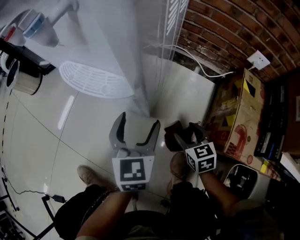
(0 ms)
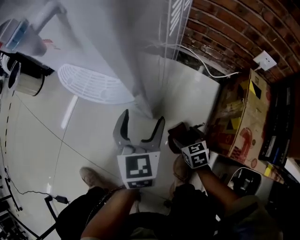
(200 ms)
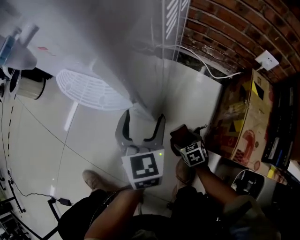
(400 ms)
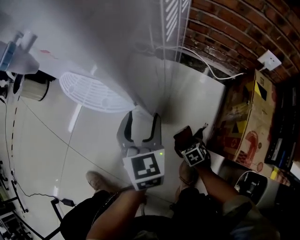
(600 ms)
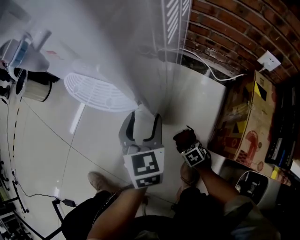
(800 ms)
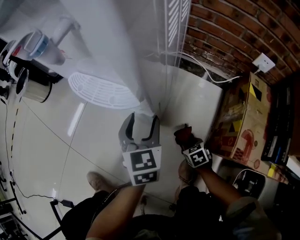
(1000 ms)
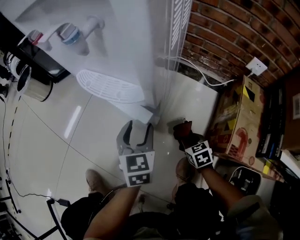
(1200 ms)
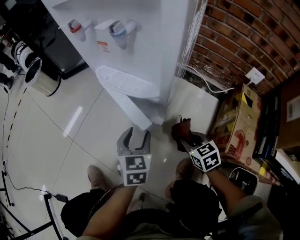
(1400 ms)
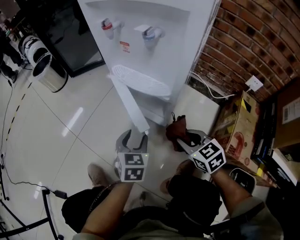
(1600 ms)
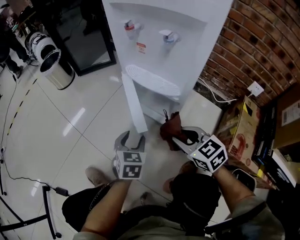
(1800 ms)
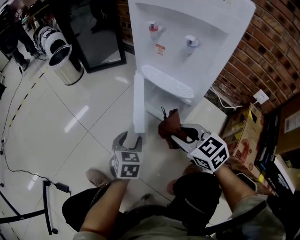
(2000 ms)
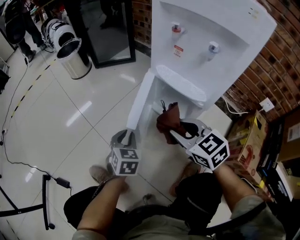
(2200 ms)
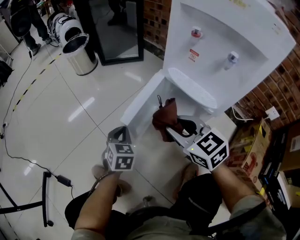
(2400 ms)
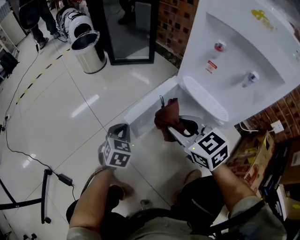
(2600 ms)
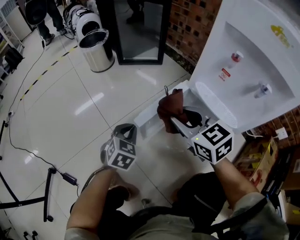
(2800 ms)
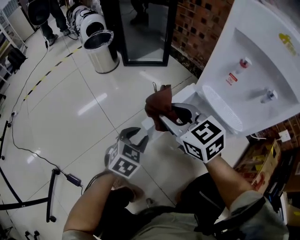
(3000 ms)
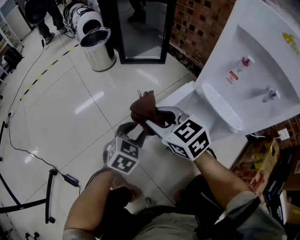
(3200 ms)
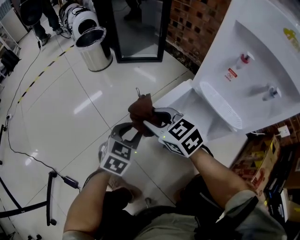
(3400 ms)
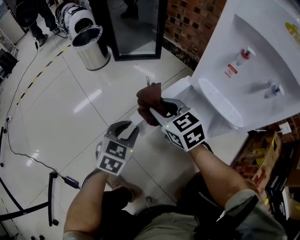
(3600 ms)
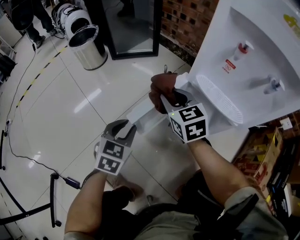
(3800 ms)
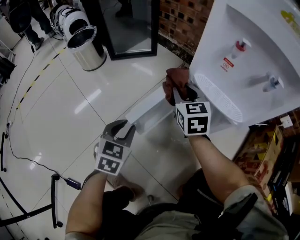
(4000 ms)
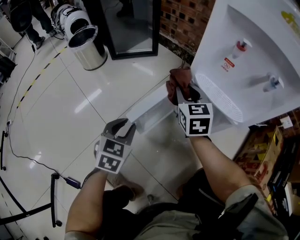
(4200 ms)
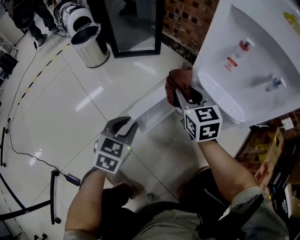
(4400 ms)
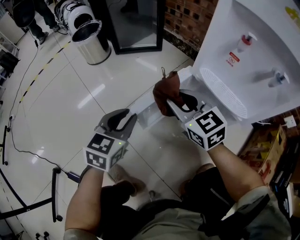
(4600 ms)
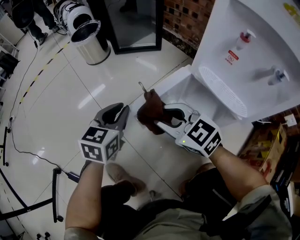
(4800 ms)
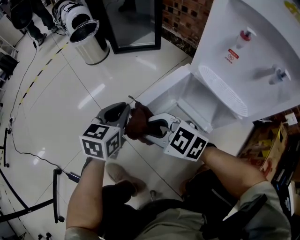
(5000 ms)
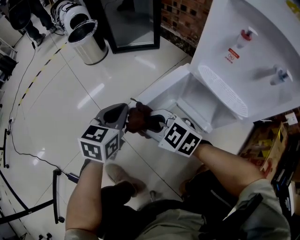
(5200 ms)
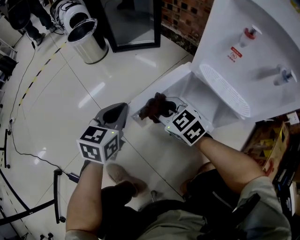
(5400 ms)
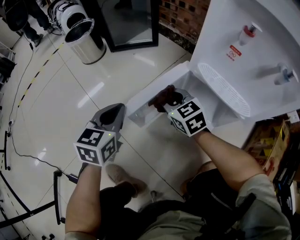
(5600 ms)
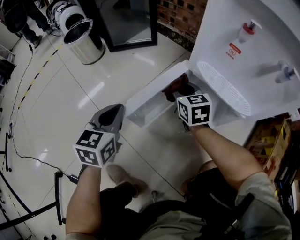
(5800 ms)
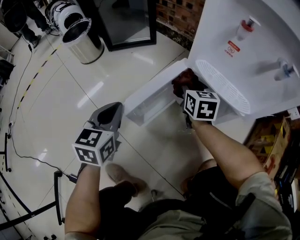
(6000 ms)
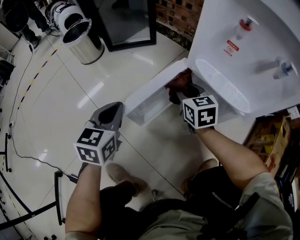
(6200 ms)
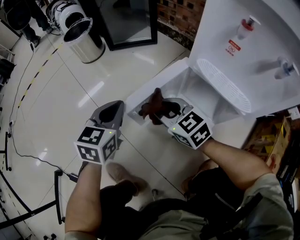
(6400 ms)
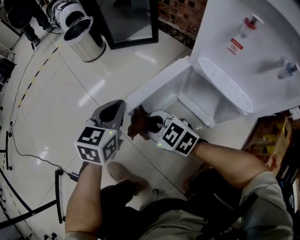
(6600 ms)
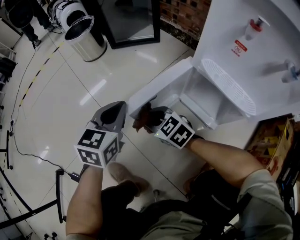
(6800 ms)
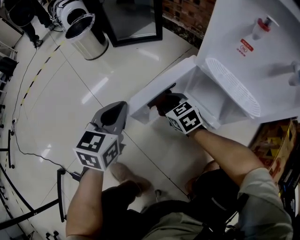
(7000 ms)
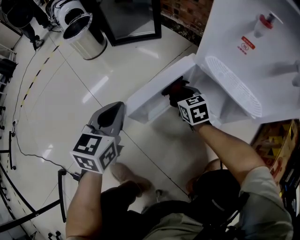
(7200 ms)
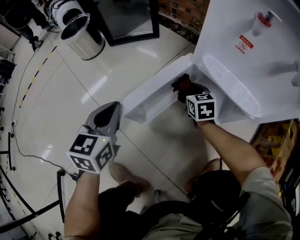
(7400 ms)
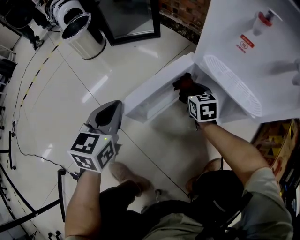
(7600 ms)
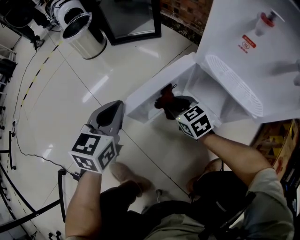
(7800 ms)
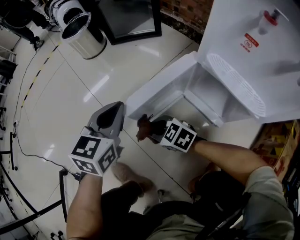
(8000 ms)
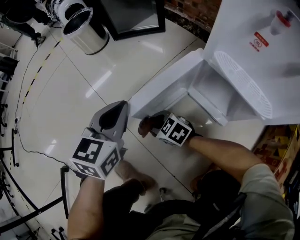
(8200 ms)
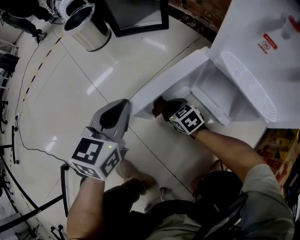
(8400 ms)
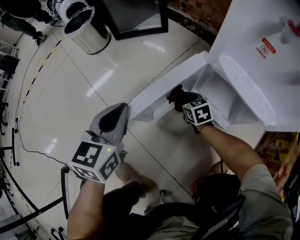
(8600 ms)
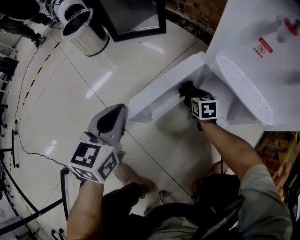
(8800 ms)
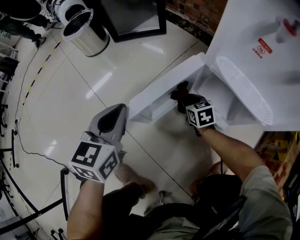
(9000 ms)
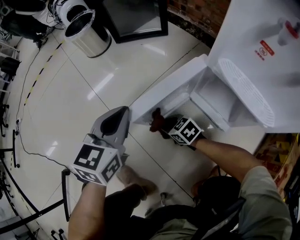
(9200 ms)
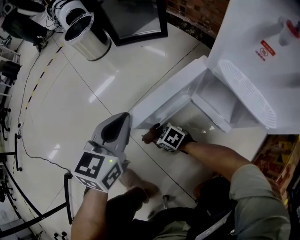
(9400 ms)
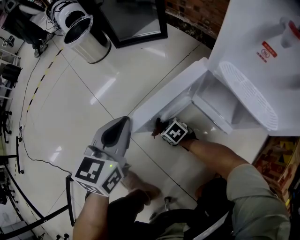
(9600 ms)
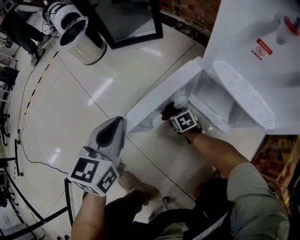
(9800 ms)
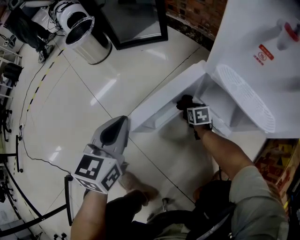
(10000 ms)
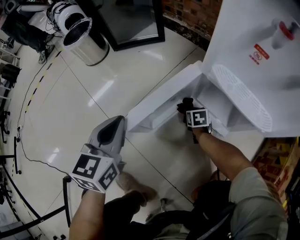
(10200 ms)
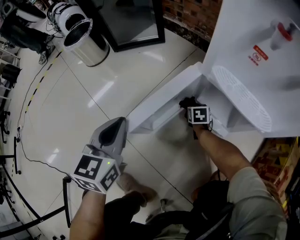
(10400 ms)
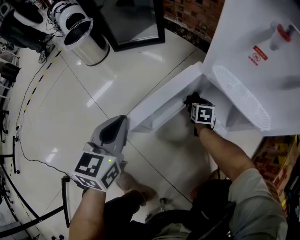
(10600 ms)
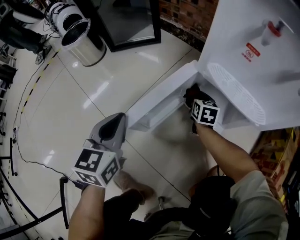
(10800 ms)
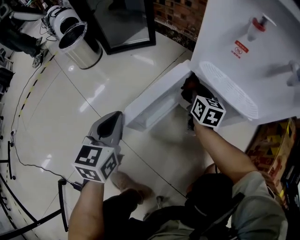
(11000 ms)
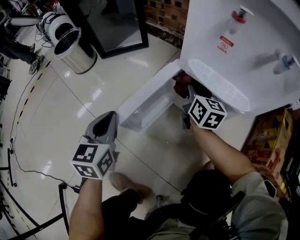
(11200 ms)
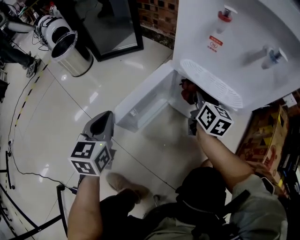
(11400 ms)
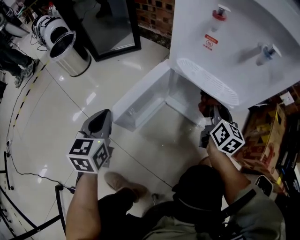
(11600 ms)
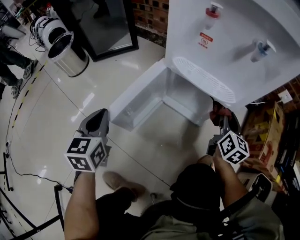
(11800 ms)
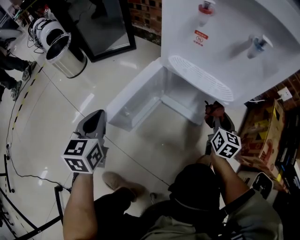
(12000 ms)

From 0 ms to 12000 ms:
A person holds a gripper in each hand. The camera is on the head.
From 0 ms to 1600 ms: The right gripper travels upward and to the left by roughly 15 cm, rotates some 20 degrees, and closes up, while the left gripper shifts approximately 10 cm to the left, and closes.
From 1600 ms to 3000 ms: The right gripper shifts about 40 cm to the left, forward and upward, and swivels roughly 30 degrees. Meanwhile the left gripper goes roughly 25 cm to the left and forward.
From 3000 ms to 4400 ms: The right gripper goes approximately 15 cm to the right, forward and downward, and swivels approximately 30 degrees.
From 4400 ms to 6000 ms: The left gripper shifts by some 5 cm. The right gripper heads downward, covering about 10 cm, and rotates approximately 20 degrees.
From 6000 ms to 7600 ms: The right gripper heads downward, covering some 10 cm.
From 7600 ms to 9000 ms: The right gripper travels downward by some 10 cm.
From 9000 ms to 10400 ms: The right gripper is displaced downward by some 10 cm, and turns by approximately 20 degrees.
From 10400 ms to 12000 ms: The right gripper heads to the right, upward and backward, covering about 35 cm, and tilts its fingers about 30 degrees upward.

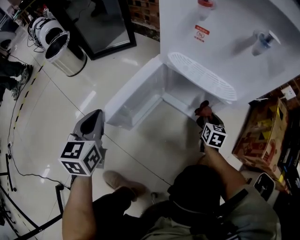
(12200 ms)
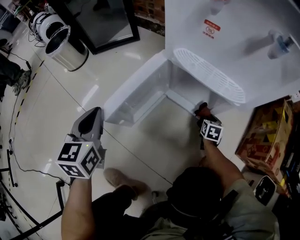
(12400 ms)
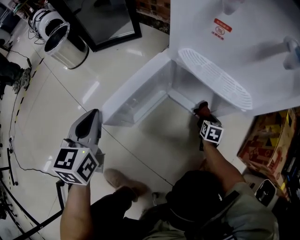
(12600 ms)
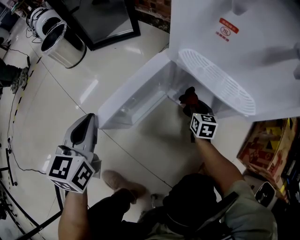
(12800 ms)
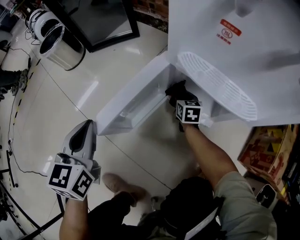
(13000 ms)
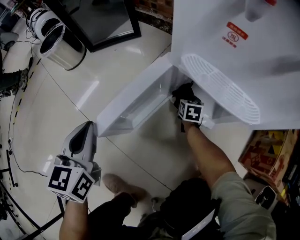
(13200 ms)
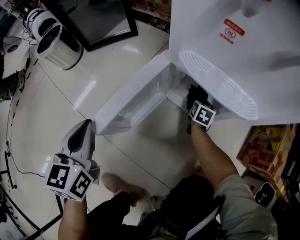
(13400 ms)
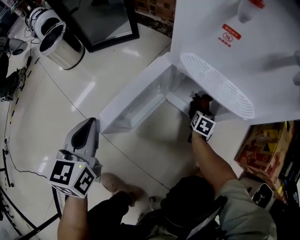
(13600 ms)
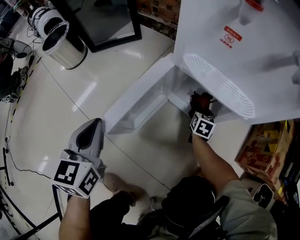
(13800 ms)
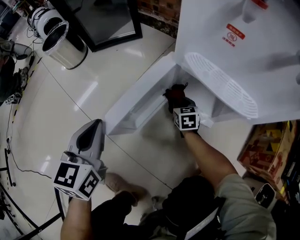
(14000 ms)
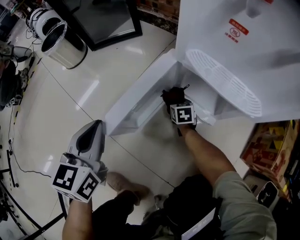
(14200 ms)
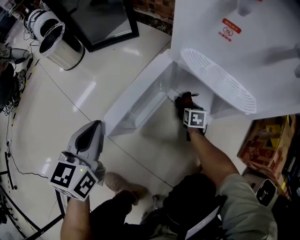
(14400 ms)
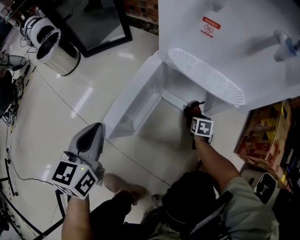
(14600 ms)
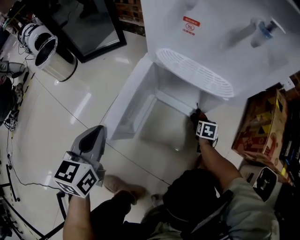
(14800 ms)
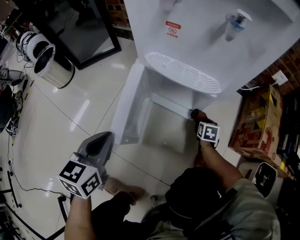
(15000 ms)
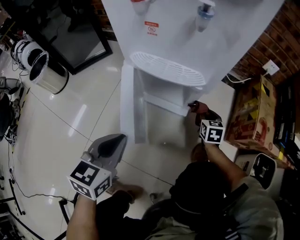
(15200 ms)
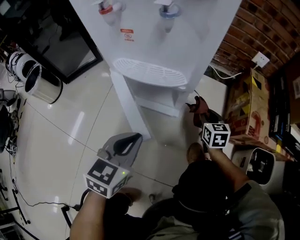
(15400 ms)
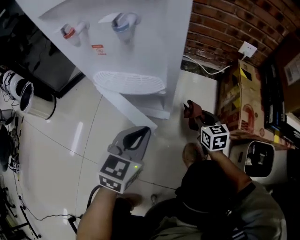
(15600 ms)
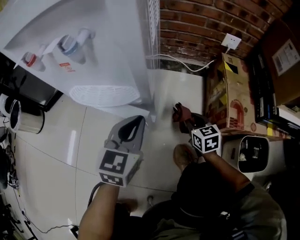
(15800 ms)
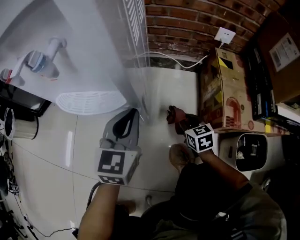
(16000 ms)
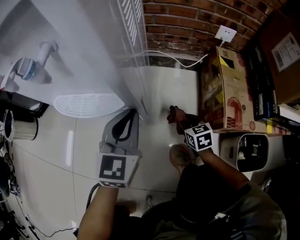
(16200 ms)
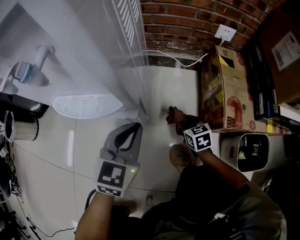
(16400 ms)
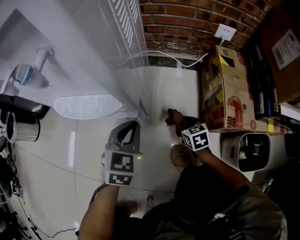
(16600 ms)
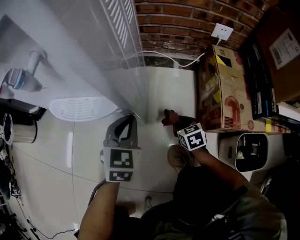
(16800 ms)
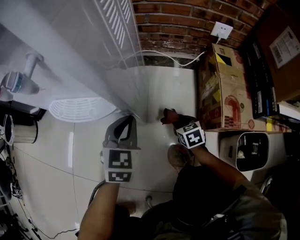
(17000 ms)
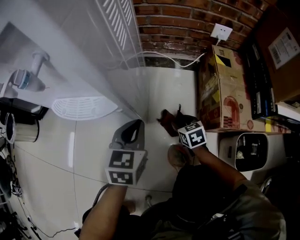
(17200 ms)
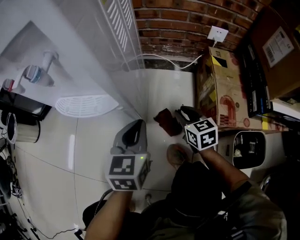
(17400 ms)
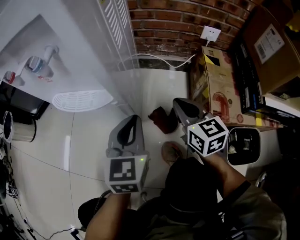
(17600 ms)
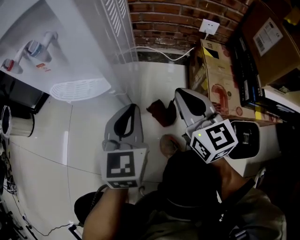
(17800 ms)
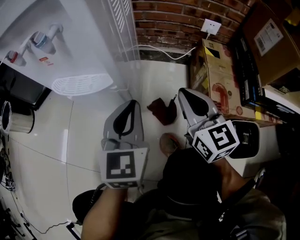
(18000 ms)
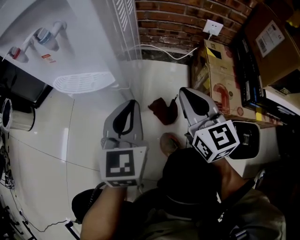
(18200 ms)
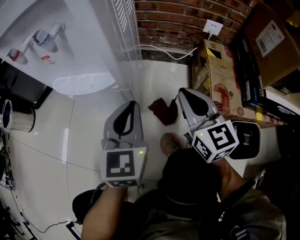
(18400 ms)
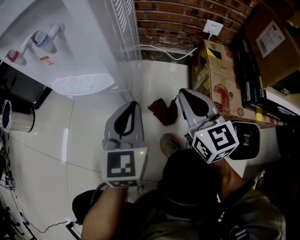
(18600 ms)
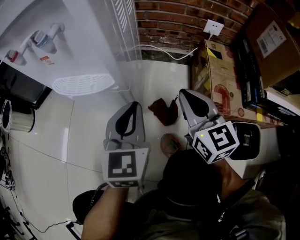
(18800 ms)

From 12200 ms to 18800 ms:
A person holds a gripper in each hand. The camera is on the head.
From 12200 ms to 13800 ms: The right gripper is displaced to the left, forward and downward by roughly 10 cm.
From 13800 ms to 15400 ms: The left gripper moves approximately 25 cm, and turns by some 40 degrees. Meanwhile the right gripper ends up approximately 25 cm from where it was.
From 15400 ms to 17200 ms: The left gripper shifts some 20 cm to the right and forward, while the right gripper travels downward and to the right by roughly 10 cm.
From 17200 ms to 18800 ms: The right gripper is displaced upward by roughly 30 cm, tips its fingers upward by some 40 degrees, and closes up; the left gripper goes some 10 cm upward.

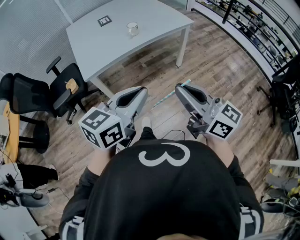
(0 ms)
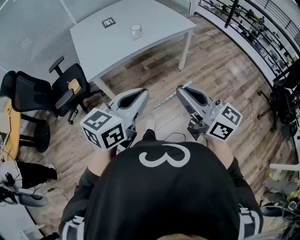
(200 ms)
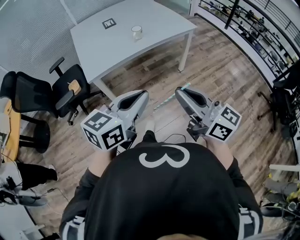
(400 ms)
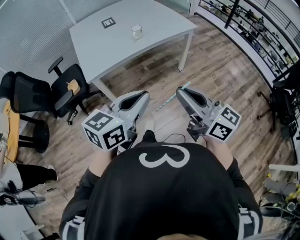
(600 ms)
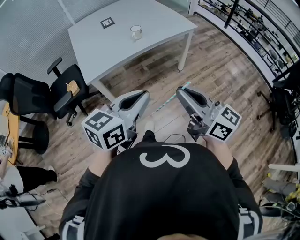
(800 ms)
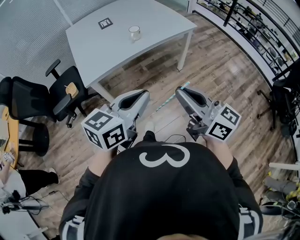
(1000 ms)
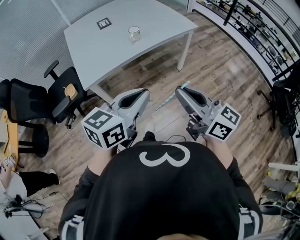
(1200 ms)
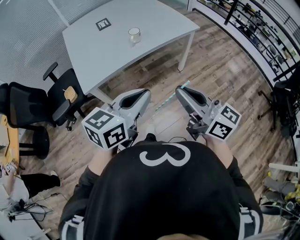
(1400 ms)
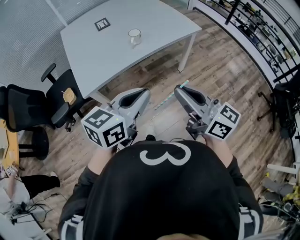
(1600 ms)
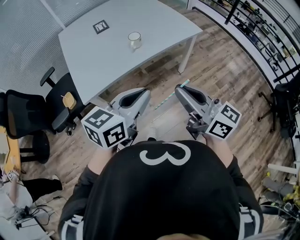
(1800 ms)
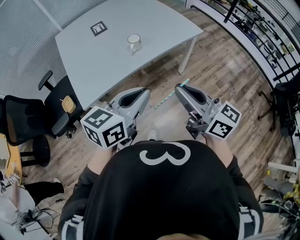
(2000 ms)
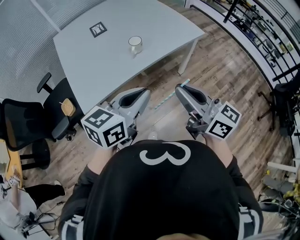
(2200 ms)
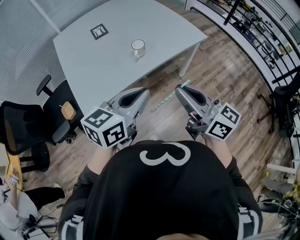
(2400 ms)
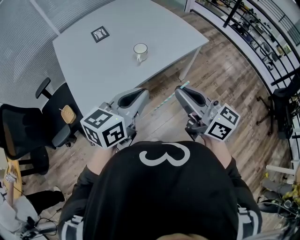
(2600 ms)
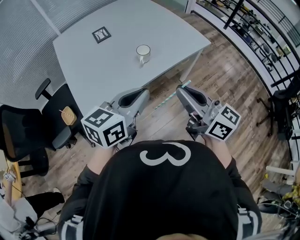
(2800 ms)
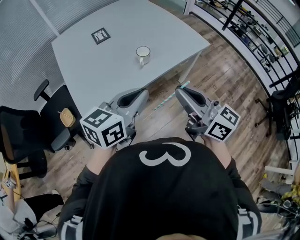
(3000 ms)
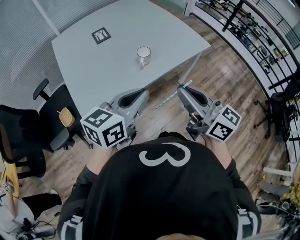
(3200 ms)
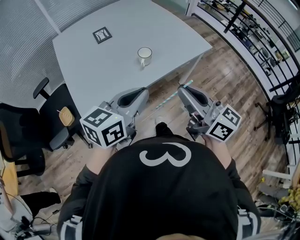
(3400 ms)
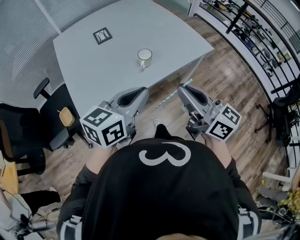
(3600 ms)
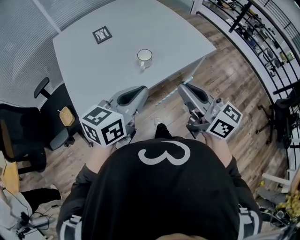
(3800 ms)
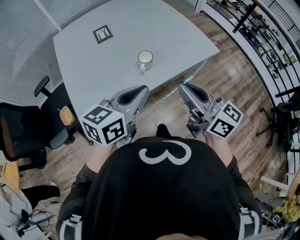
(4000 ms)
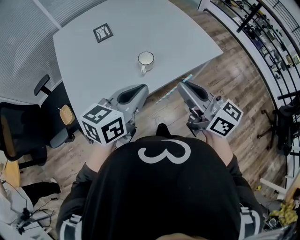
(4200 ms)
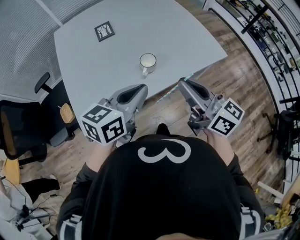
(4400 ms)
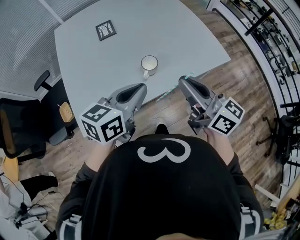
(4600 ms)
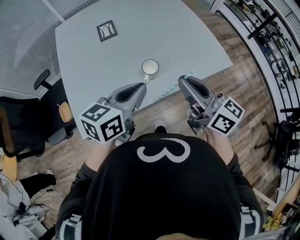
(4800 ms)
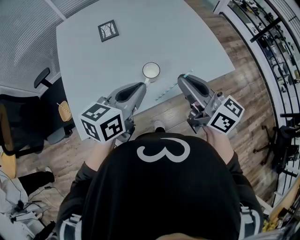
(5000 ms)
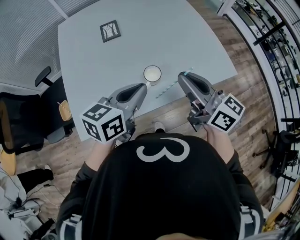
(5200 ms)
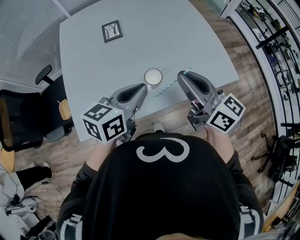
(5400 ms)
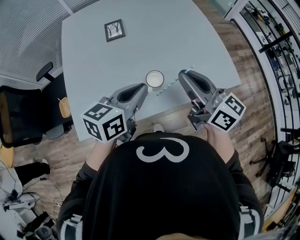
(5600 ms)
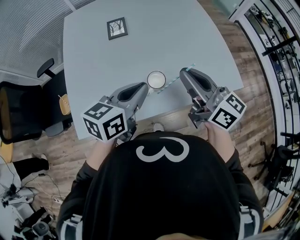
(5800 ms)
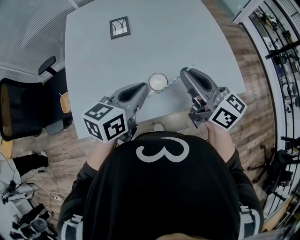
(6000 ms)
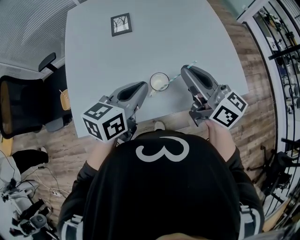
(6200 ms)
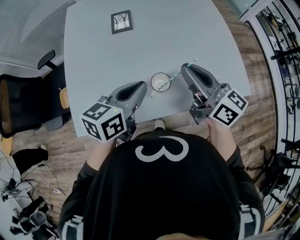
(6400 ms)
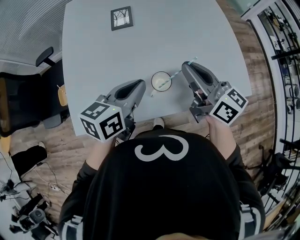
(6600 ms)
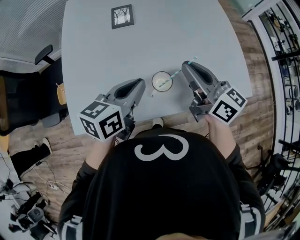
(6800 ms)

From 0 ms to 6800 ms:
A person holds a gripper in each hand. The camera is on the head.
From 0 ms to 1400 ms: Both grippers move forward, some 10 cm.
From 1400 ms to 2800 ms: The grippers both shift forward and to the left by some 25 cm.
From 2800 ms to 4000 ms: The grippers both shift forward by about 10 cm.
From 4000 ms to 5400 ms: Both grippers travel together forward, roughly 20 cm.
From 5400 ms to 6800 ms: The left gripper is displaced forward and downward by approximately 10 cm. The right gripper goes roughly 10 cm forward and downward.
